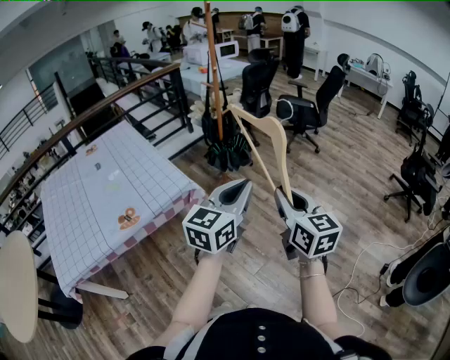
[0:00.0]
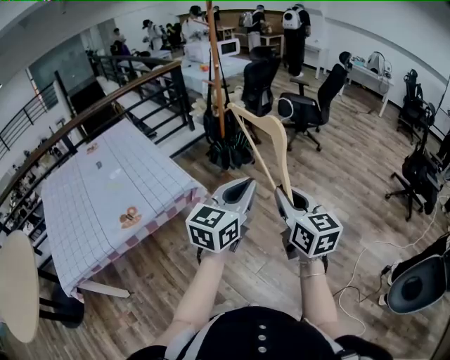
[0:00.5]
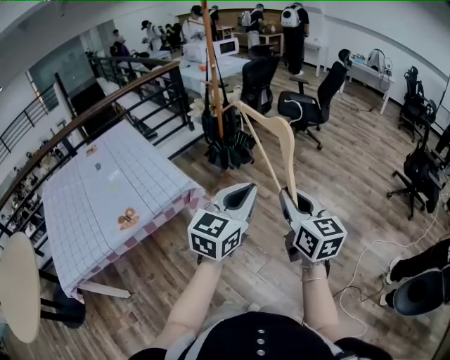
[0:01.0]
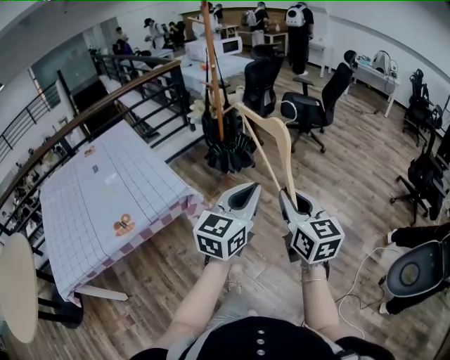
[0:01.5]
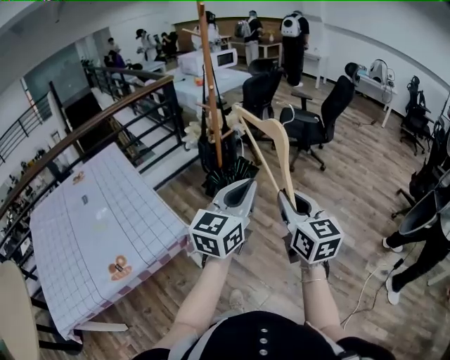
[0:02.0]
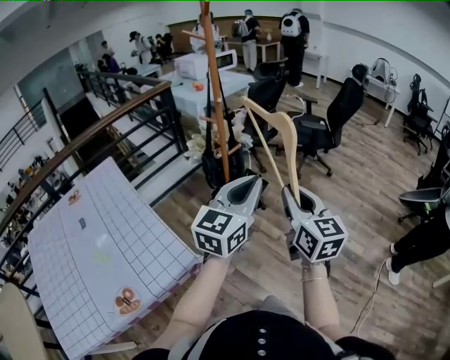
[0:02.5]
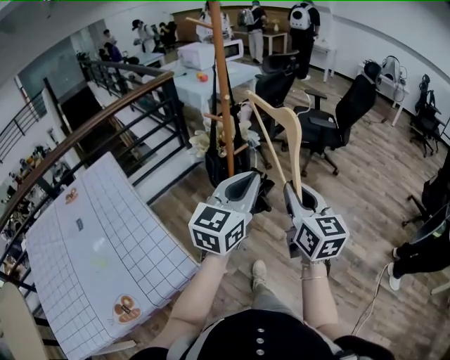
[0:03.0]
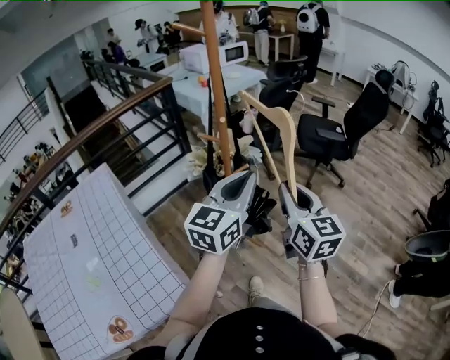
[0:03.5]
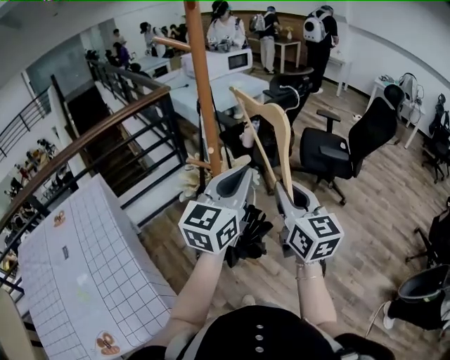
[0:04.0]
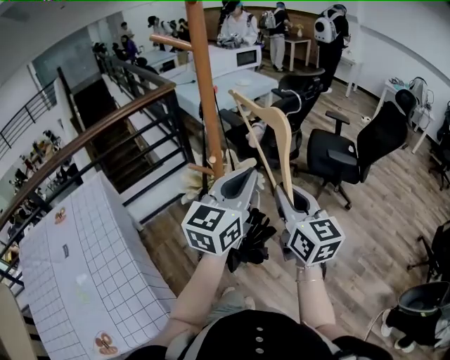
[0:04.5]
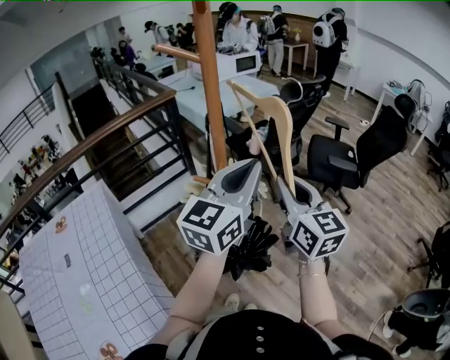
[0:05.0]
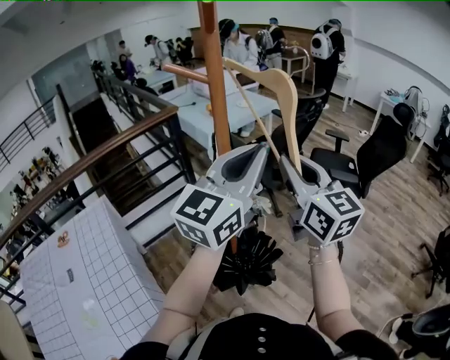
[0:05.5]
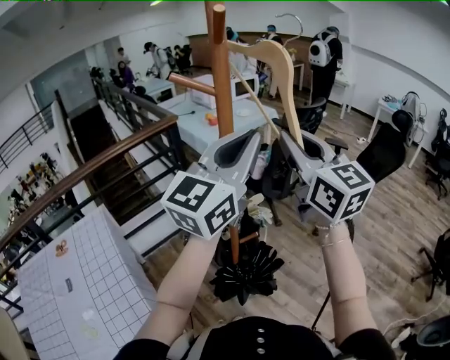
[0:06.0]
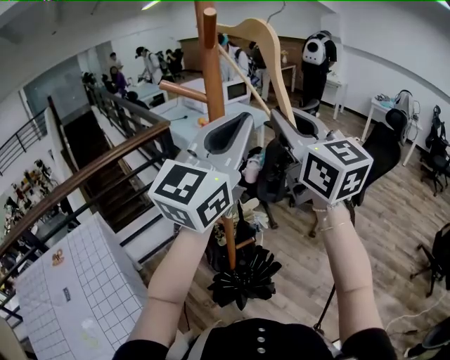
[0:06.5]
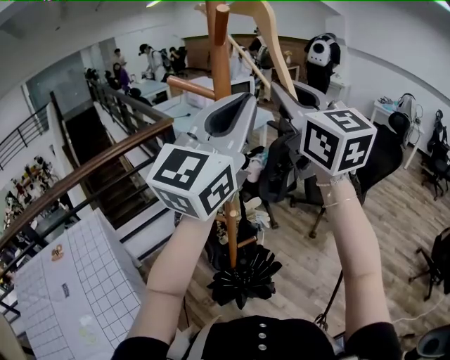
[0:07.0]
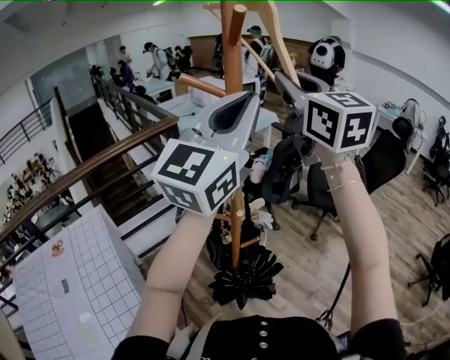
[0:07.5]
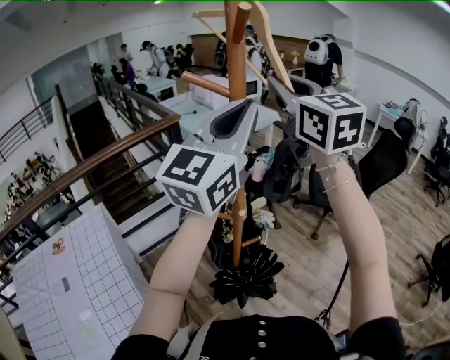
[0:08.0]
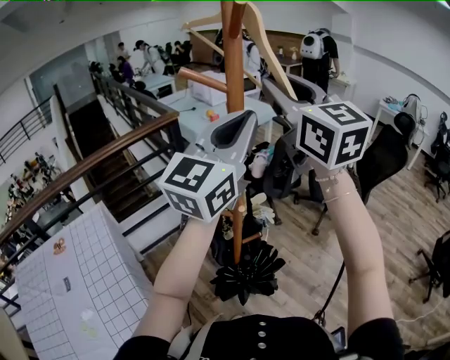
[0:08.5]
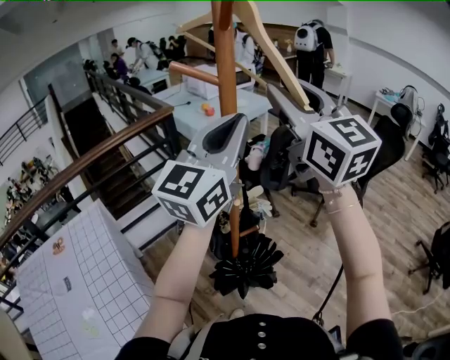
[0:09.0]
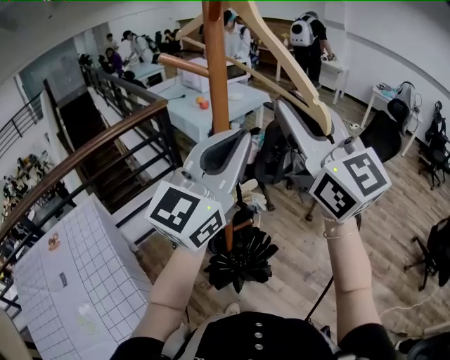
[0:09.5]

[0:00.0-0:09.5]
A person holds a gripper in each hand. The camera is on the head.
0:00.0 to 0:02.0: Both grippers move forward, roughly 20 cm.
0:02.0 to 0:04.0: The two grippers travel together, forward, some 40 cm.
0:04.0 to 0:05.5: The grippers both shift upward and forward by about 15 cm.
0:05.5 to 0:07.5: The left gripper shifts some 10 cm upward. The right gripper heads upward and forward, covering approximately 20 cm.
0:07.5 to 0:09.5: The left gripper heads downward, covering roughly 10 cm, while the right gripper moves backward and downward, approximately 10 cm.

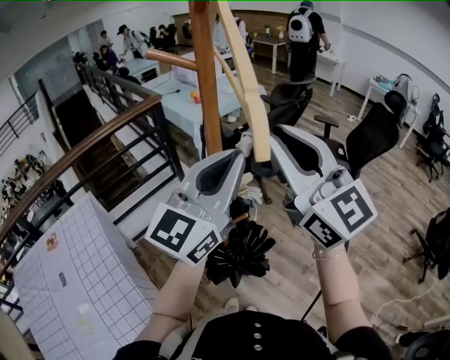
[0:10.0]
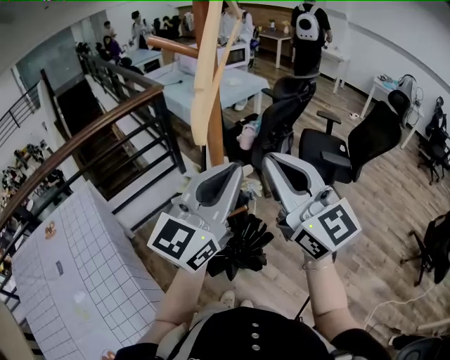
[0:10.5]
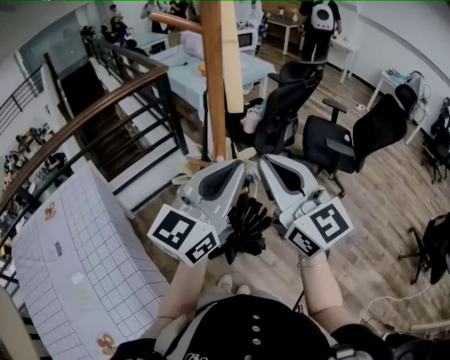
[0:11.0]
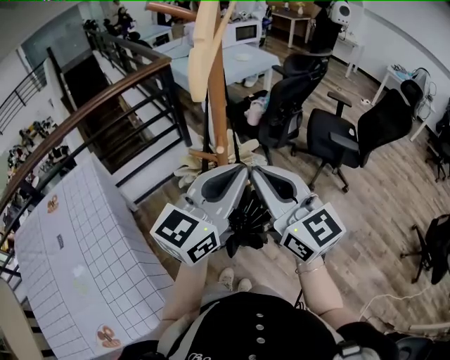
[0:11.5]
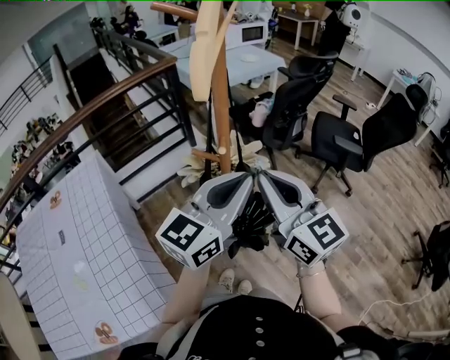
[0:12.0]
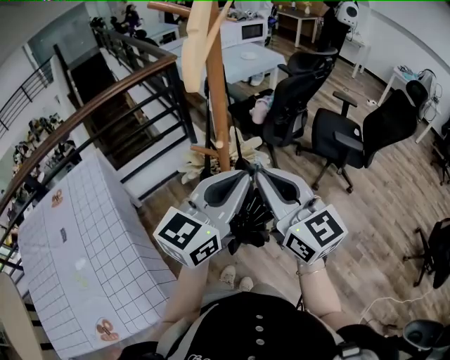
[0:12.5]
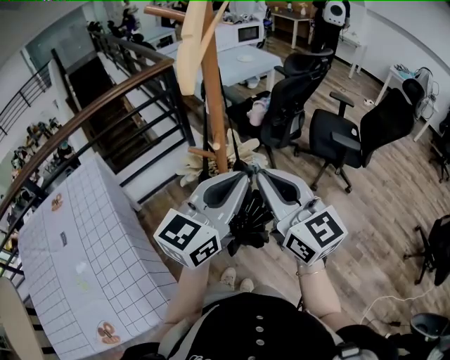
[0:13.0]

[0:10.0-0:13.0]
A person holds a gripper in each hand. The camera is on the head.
0:10.0 to 0:11.5: The two grippers go some 15 cm downward.
0:11.5 to 0:13.0: The grippers make only small movements.

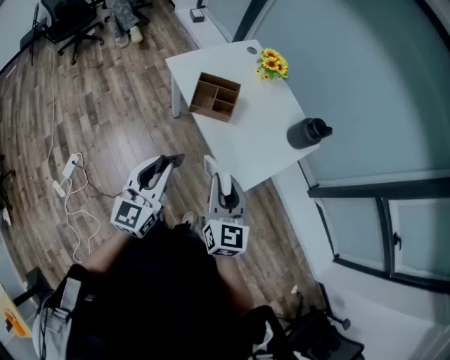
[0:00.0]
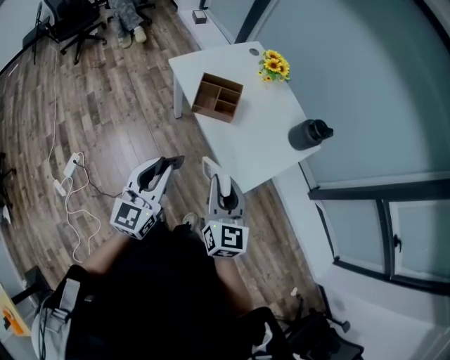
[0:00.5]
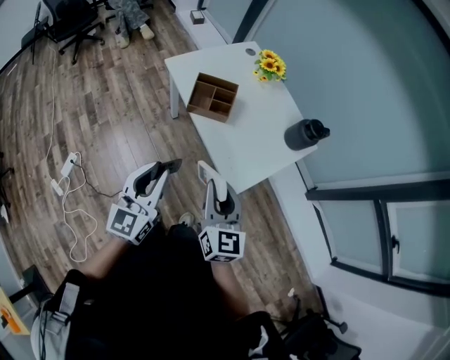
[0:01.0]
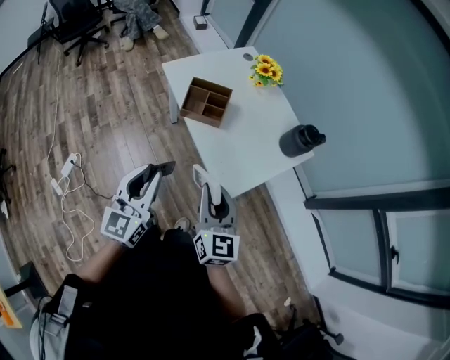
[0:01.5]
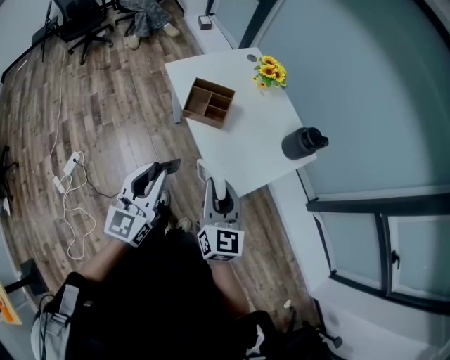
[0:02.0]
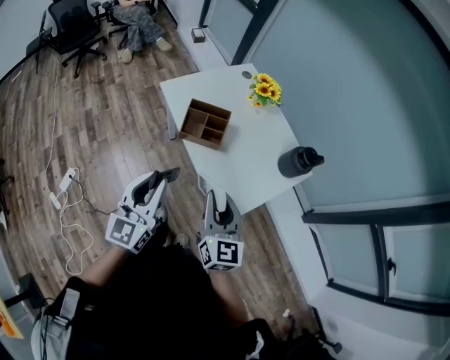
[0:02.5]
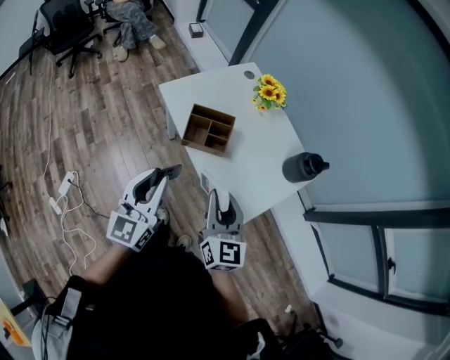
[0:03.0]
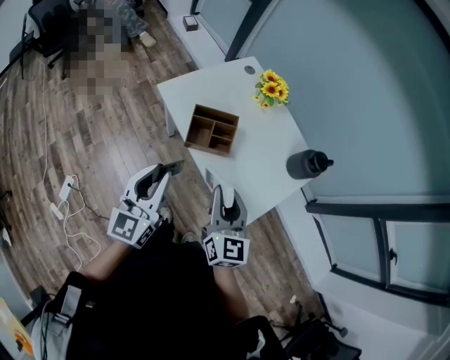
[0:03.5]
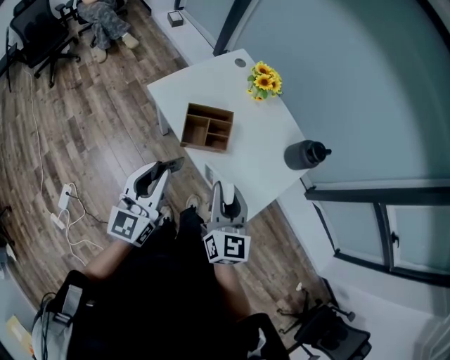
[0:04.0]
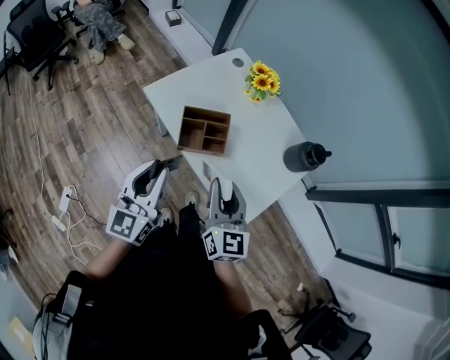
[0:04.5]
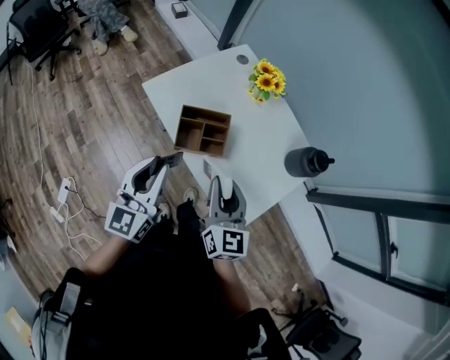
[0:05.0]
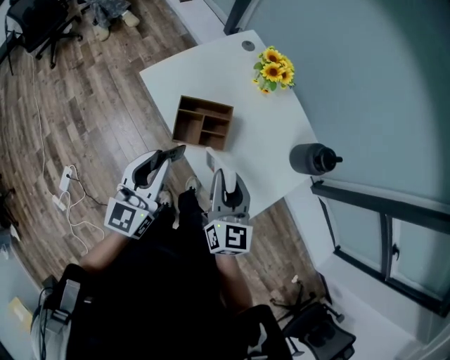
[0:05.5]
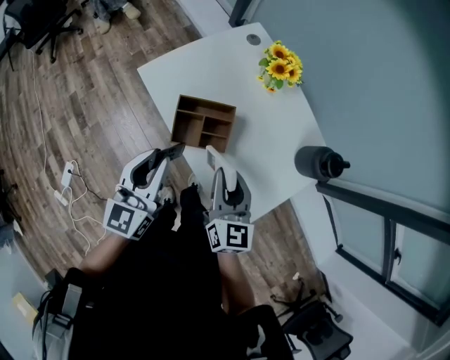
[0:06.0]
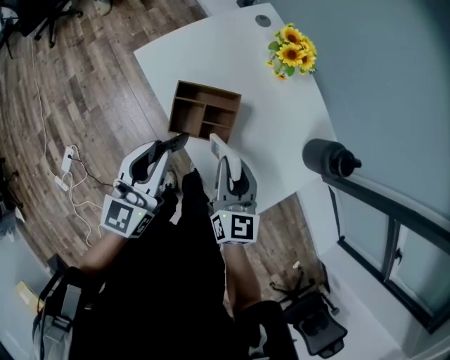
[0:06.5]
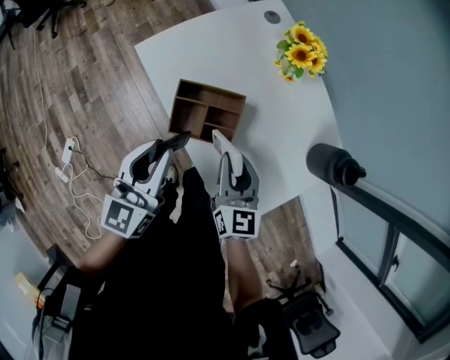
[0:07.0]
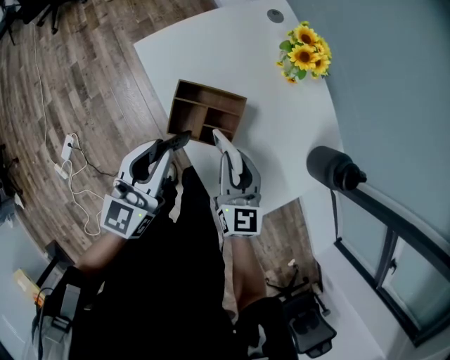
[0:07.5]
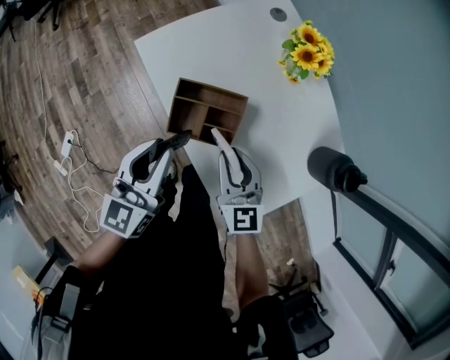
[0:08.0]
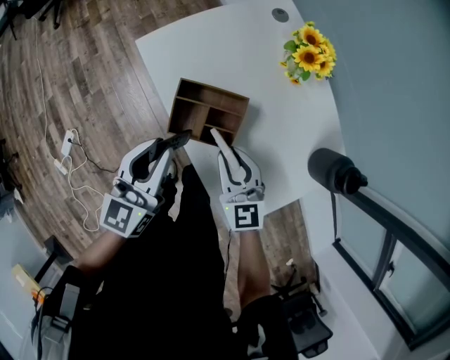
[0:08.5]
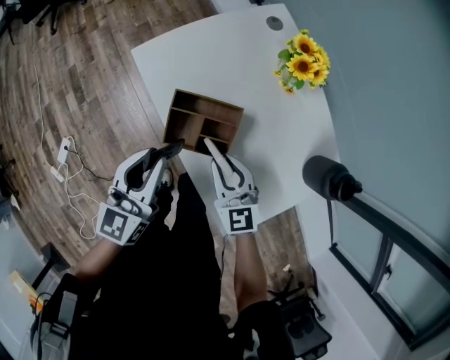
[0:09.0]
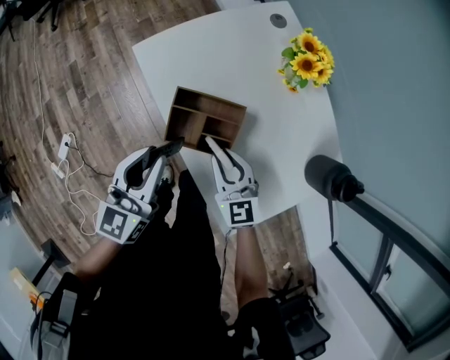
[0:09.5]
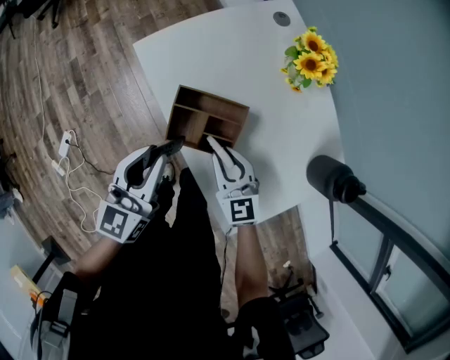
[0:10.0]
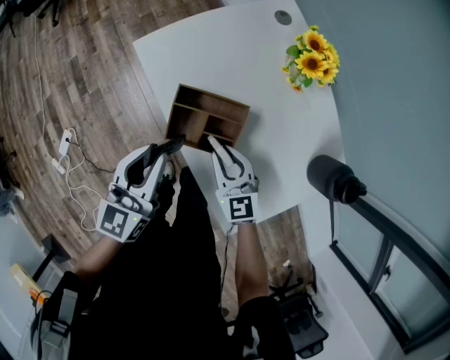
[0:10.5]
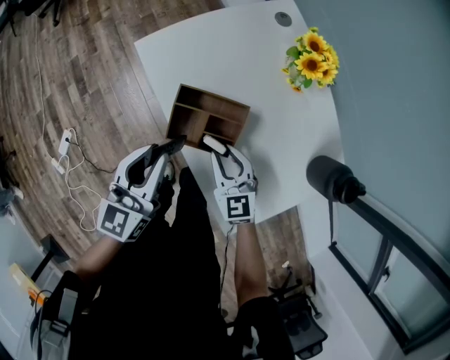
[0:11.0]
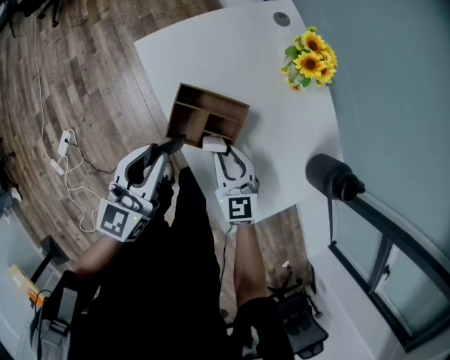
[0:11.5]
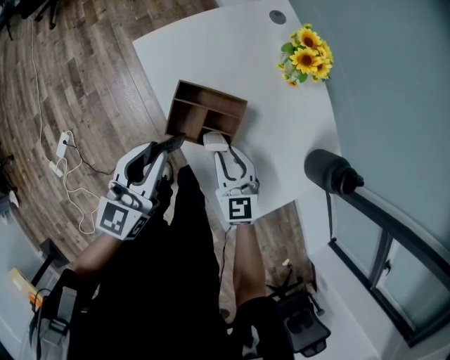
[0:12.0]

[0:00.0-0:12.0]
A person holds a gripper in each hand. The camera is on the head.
0:00.0 to 0:02.0: The left gripper shifts by approximately 5 cm.
0:02.0 to 0:04.0: Both grippers move forward and to the left, some 20 cm.
0:04.0 to 0:06.0: The two grippers go roughly 15 cm forward and downward.
0:06.0 to 0:08.0: The right gripper goes about 10 cm downward and forward. The left gripper shifts some 5 cm downward.
0:08.0 to 0:10.0: The right gripper moves downward, approximately 5 cm.
0:10.0 to 0:12.0: The grippers move only a little.

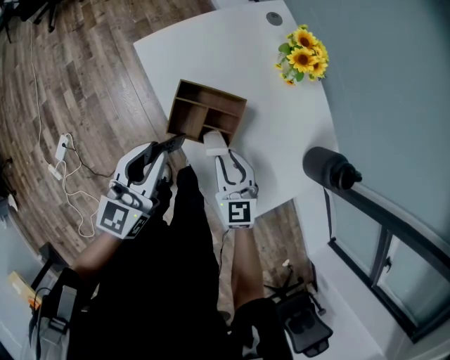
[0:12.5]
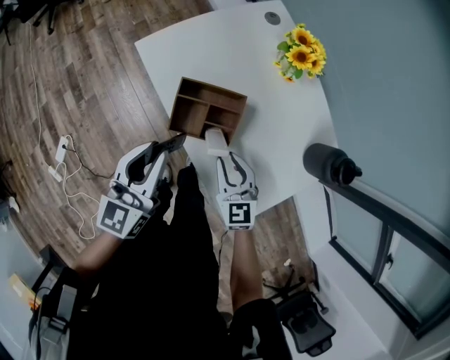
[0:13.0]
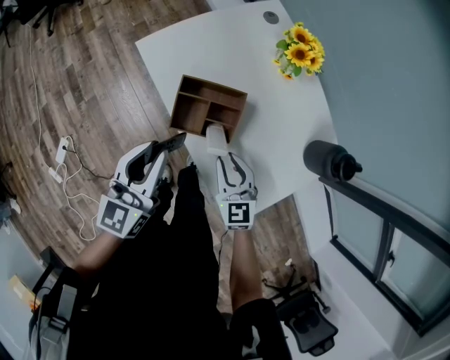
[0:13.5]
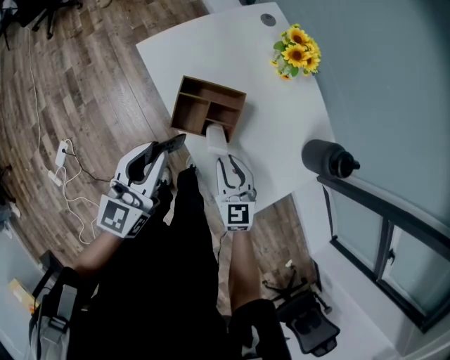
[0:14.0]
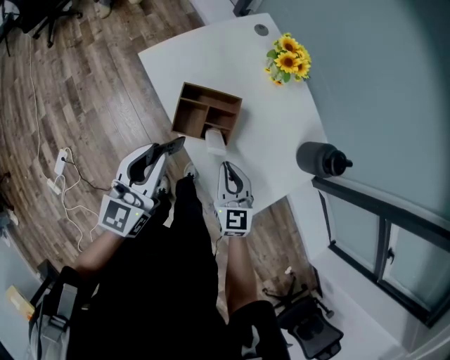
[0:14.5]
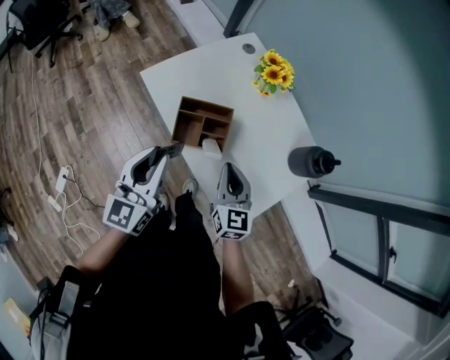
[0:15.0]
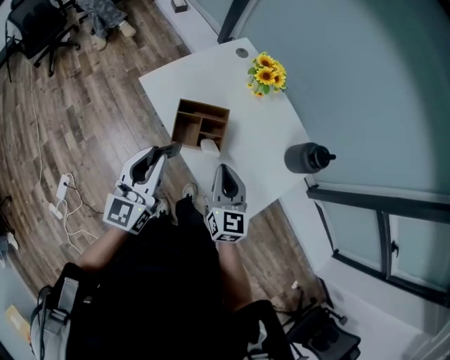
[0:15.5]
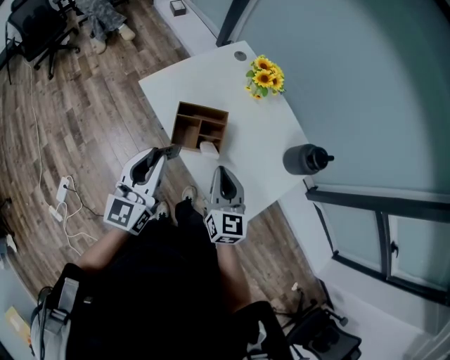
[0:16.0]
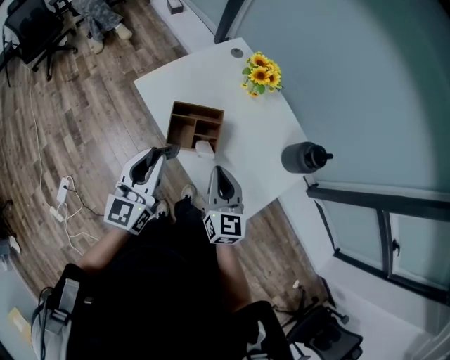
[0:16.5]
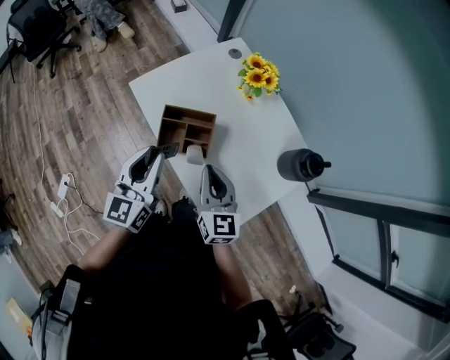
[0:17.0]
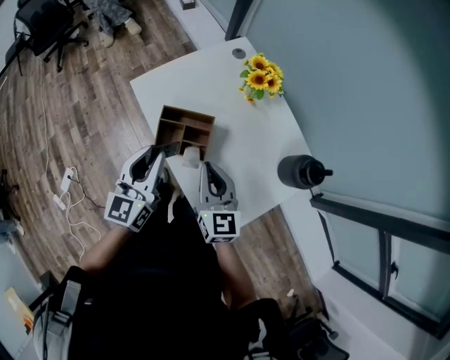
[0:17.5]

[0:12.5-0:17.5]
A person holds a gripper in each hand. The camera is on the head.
0:12.5 to 0:15.0: Both grippers travel together upward and backward, some 10 cm. The right gripper turns by approximately 20 degrees, and closes up.
0:15.0 to 0:17.5: The left gripper shifts about 5 cm to the right. Meanwhile the right gripper moves roughly 5 cm.
